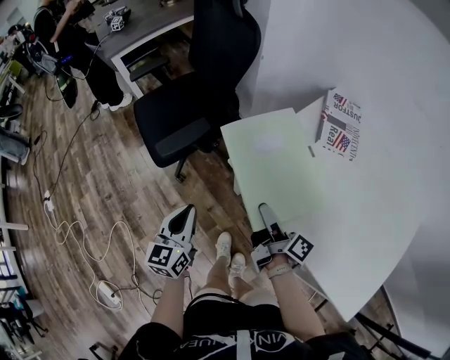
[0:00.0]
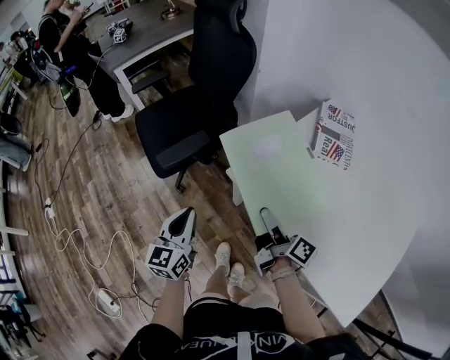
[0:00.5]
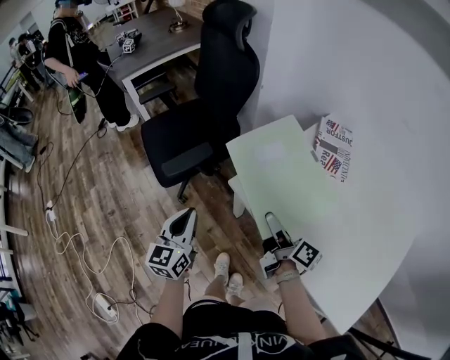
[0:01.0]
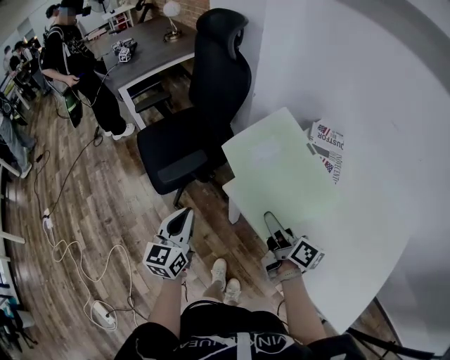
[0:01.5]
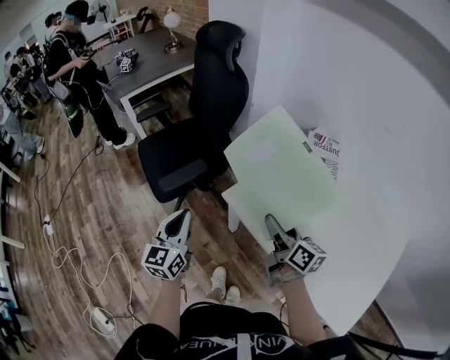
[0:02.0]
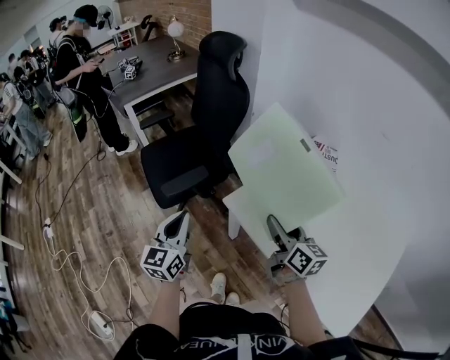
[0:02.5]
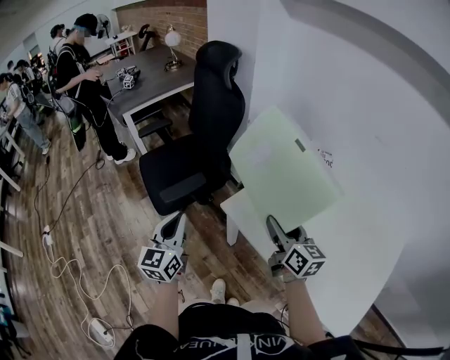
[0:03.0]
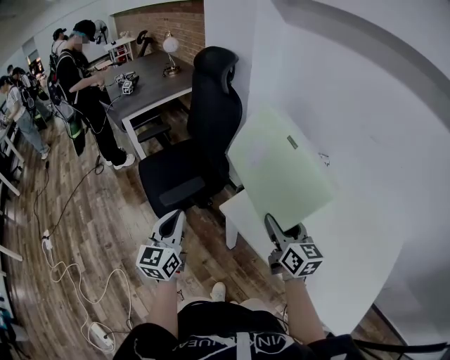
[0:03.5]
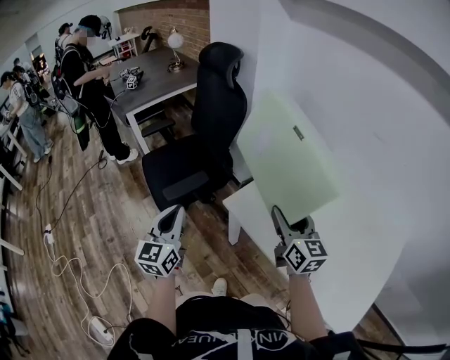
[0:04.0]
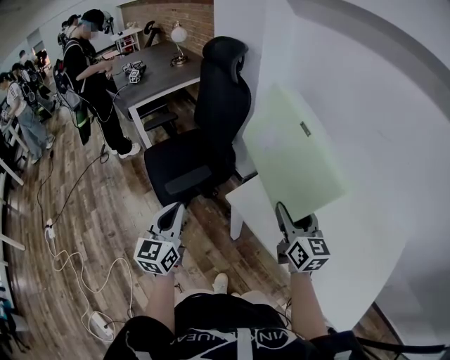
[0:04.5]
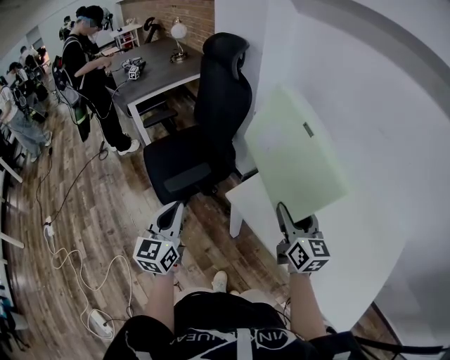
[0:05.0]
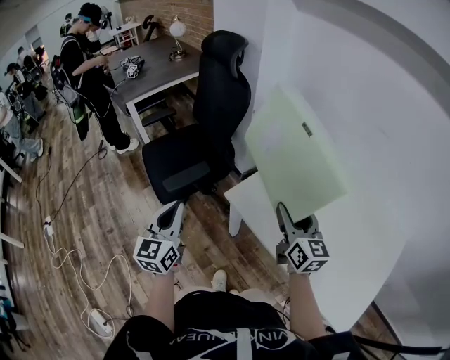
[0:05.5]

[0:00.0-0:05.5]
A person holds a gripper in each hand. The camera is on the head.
0.0 to 2.0 s: Both grippers move upward, approximately 10 cm. The right gripper turns by some 30 degrees.
2.0 to 3.5 s: Both grippers move upward, some 5 cm. The right gripper rotates some 20 degrees.
3.5 to 5.5 s: There are only small adjustments of the grippers.

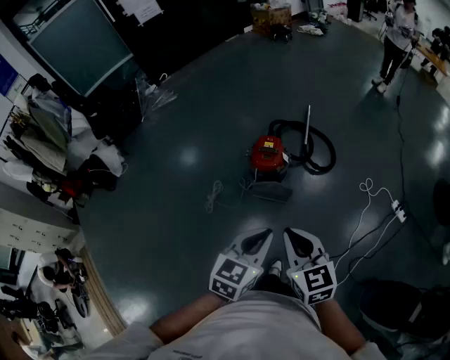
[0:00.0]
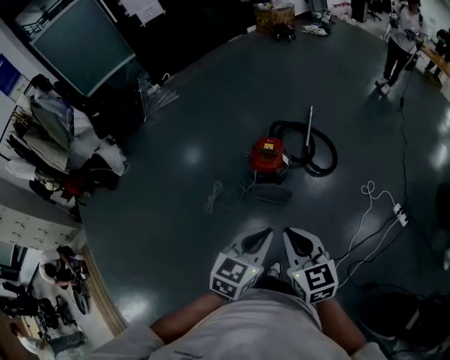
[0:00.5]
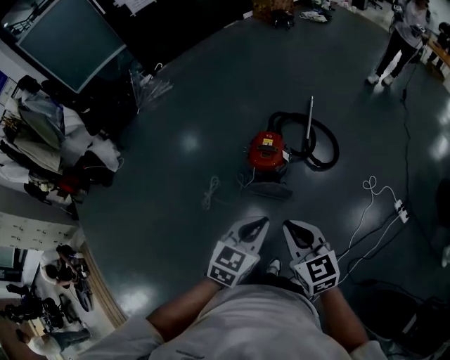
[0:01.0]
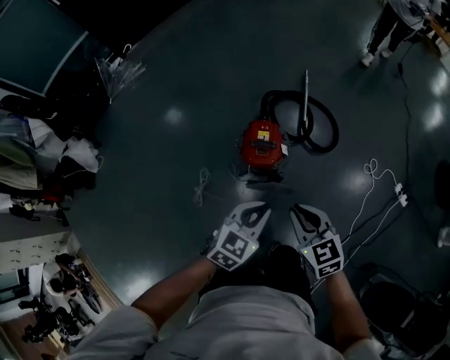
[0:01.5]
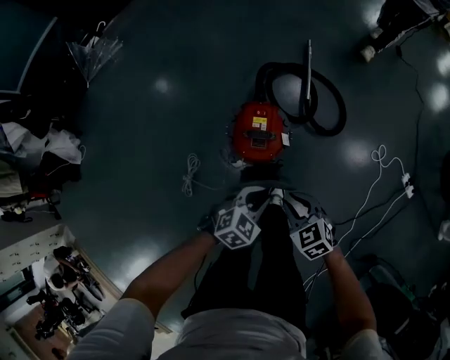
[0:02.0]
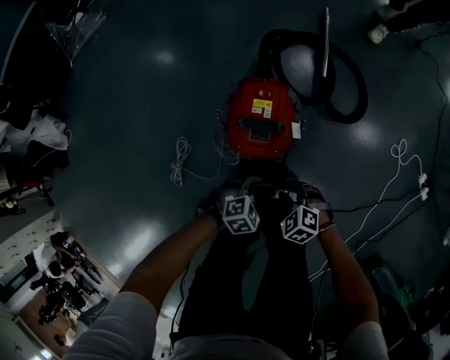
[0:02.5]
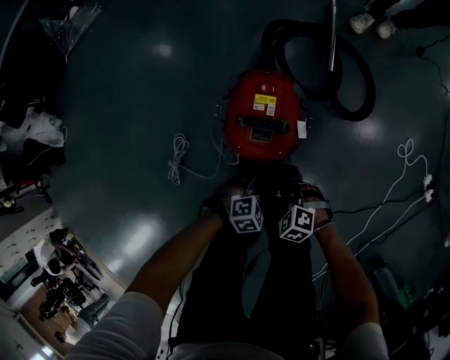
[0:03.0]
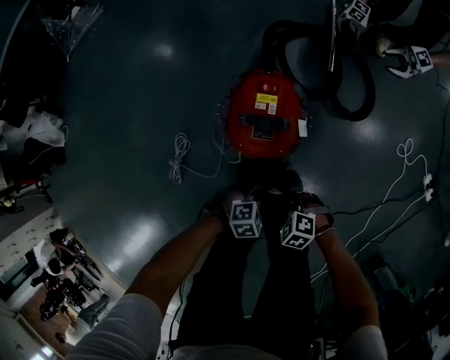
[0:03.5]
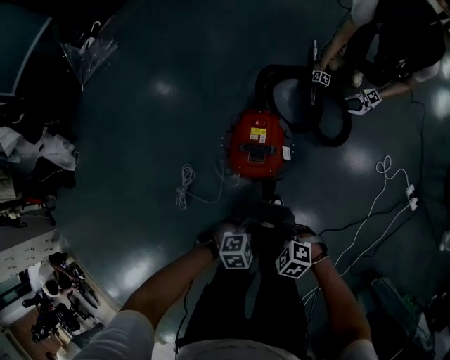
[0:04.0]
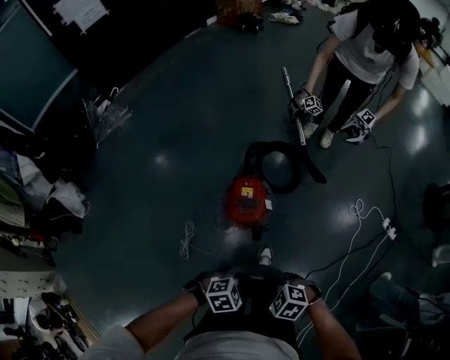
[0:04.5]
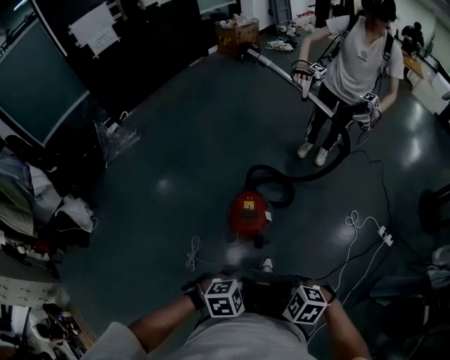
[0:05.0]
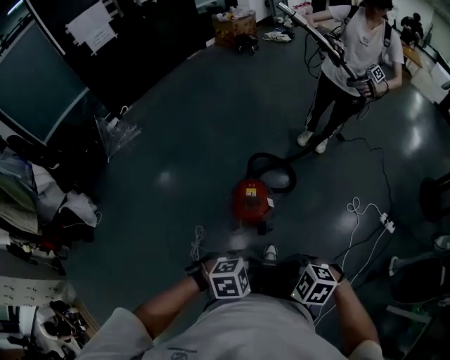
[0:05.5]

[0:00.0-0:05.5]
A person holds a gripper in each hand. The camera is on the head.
0.0 to 2.0 s: Both grippers travel together downward and forward, some 50 cm. The right gripper turns by roughly 30 degrees, while the left gripper changes its angle by about 40 degrees.
2.0 to 3.5 s: Both grippers travel together downward, roughly 30 cm. The left gripper rotates approximately 30 degrees. The right gripper rotates about 40 degrees.
3.5 to 5.5 s: The grippers both shift upward by approximately 60 cm.

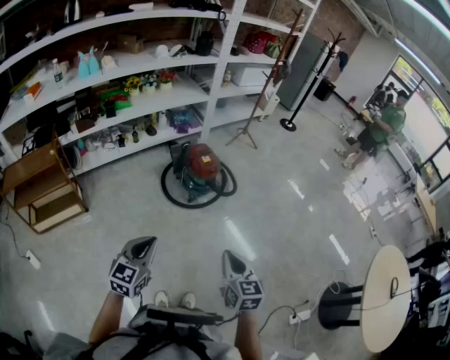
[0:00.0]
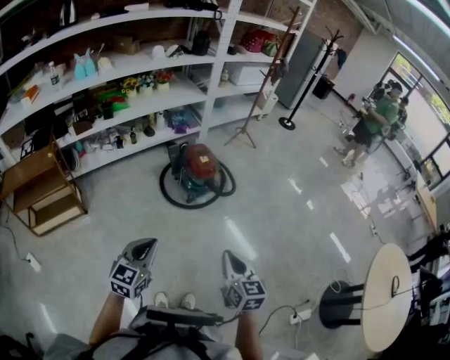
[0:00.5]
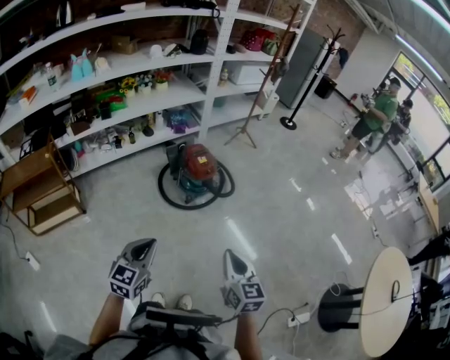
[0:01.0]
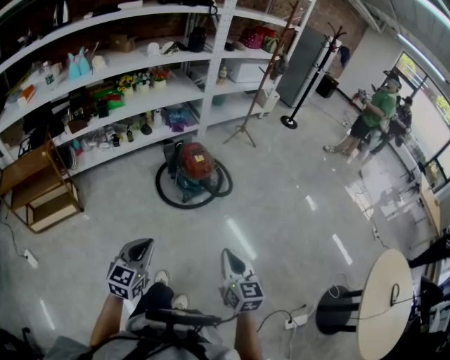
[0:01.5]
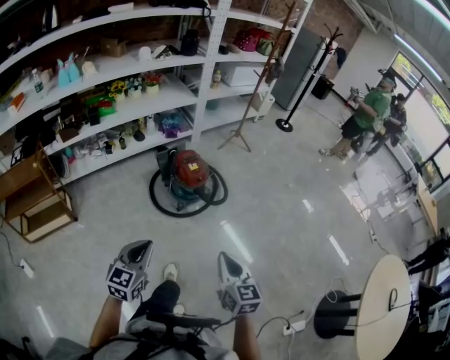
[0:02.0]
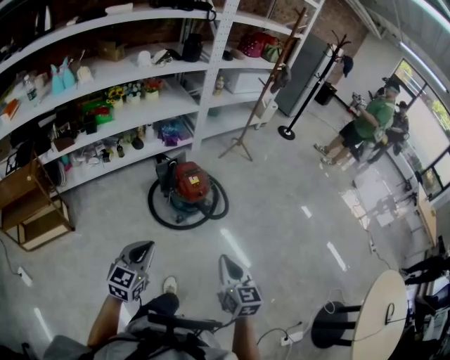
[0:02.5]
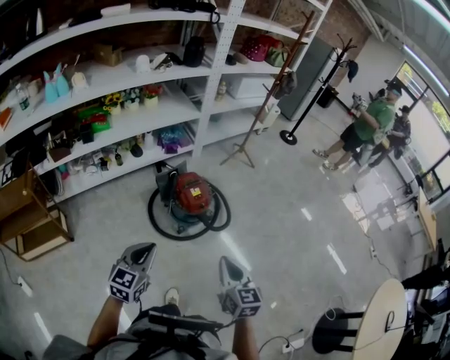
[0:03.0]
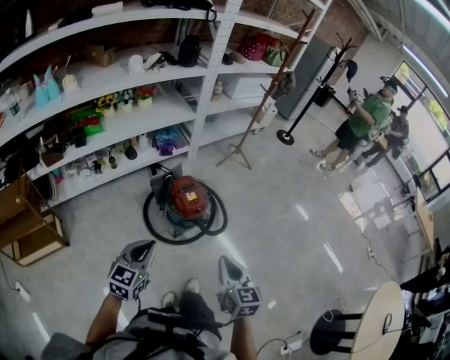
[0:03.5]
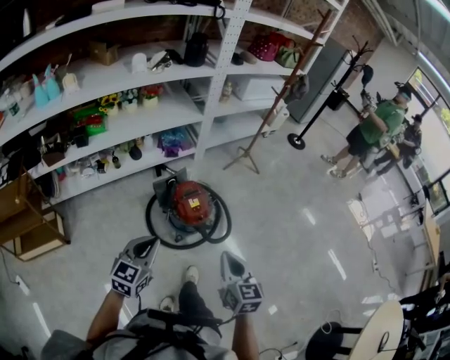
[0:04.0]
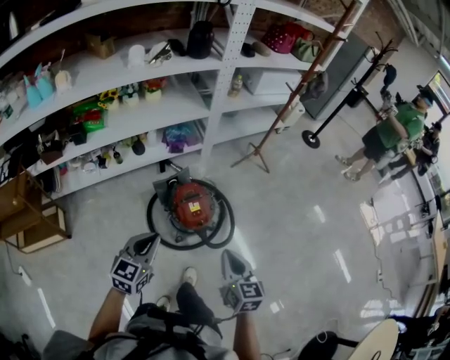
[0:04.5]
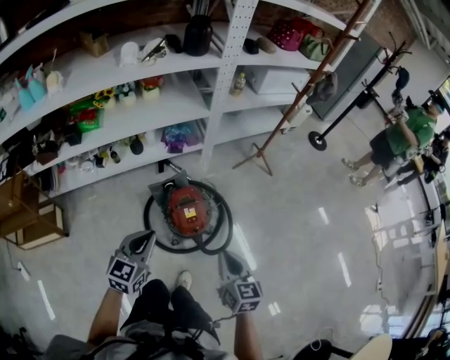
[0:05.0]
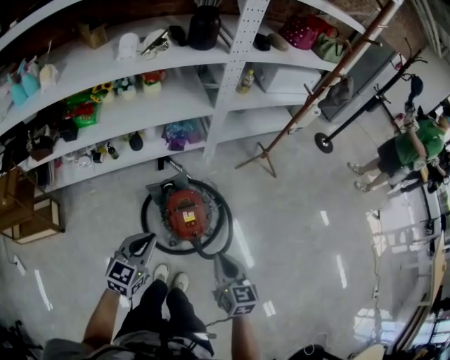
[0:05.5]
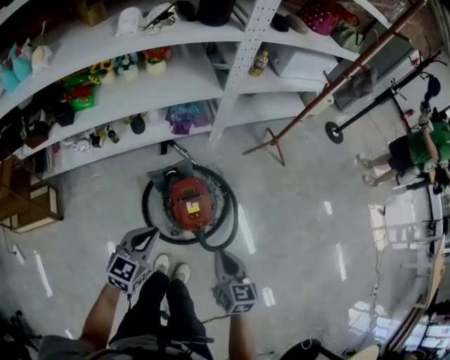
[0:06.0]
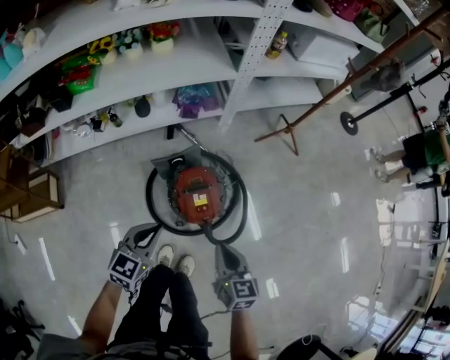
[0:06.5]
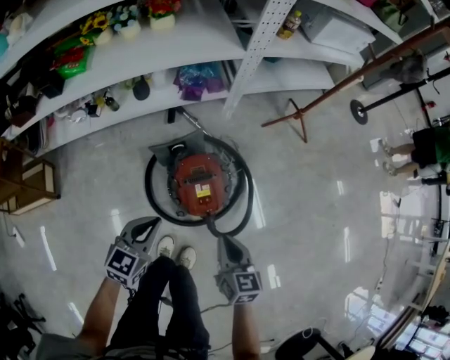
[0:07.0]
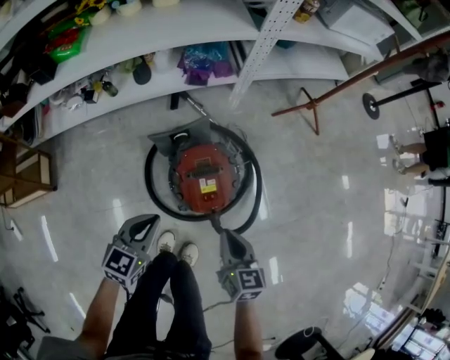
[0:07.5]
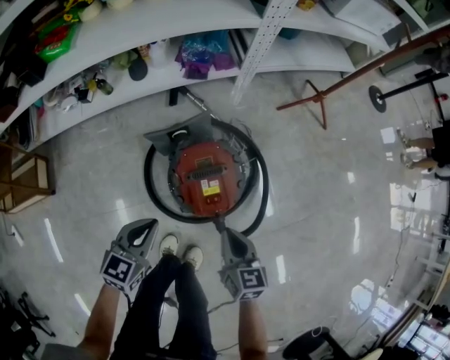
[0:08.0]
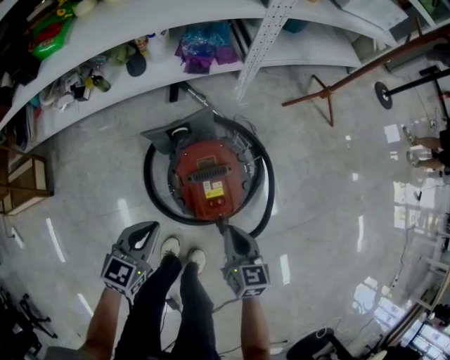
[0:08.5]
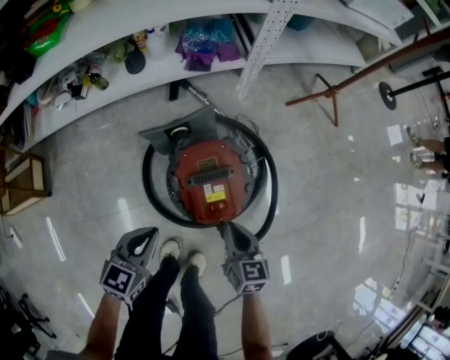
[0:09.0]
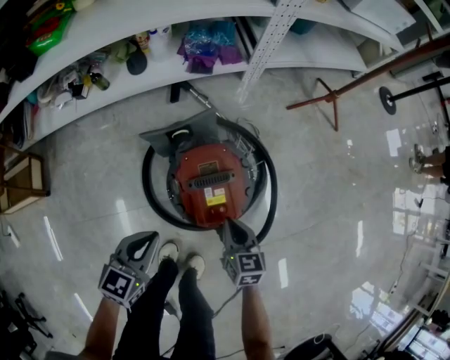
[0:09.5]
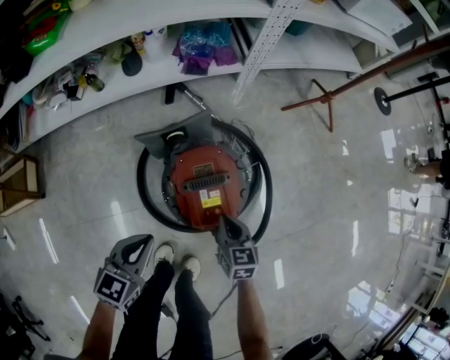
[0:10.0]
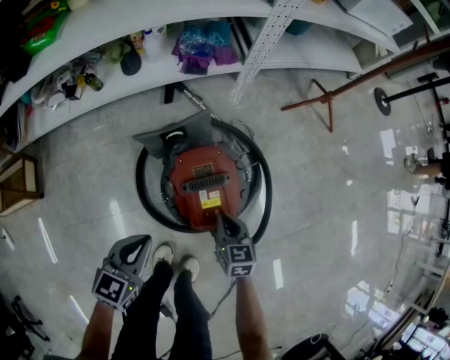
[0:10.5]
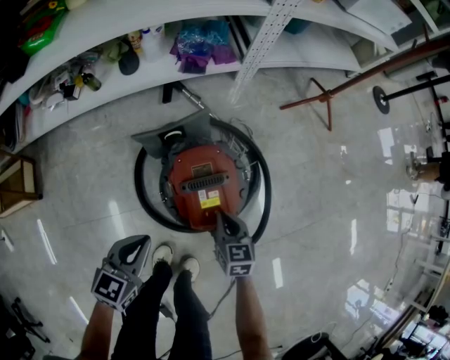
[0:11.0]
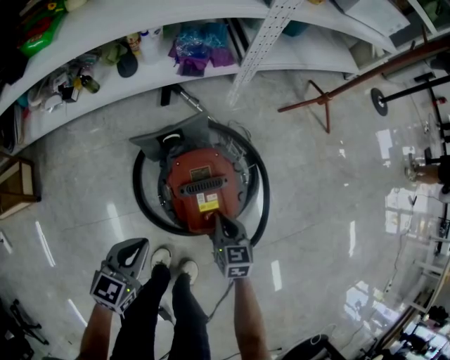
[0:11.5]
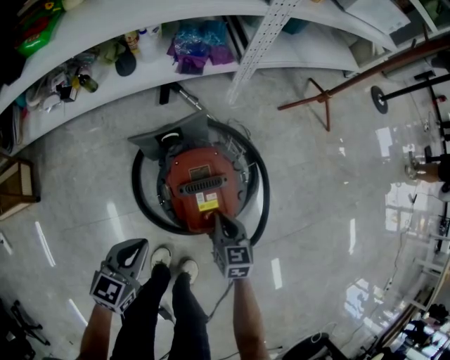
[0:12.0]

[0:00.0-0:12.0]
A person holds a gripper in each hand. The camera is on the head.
0.0 to 2.0 s: Both grippers travel together forward and to the right, some 10 cm.
2.0 to 4.0 s: The two grippers go about 35 cm forward.
4.0 to 6.0 s: The two grippers go approximately 30 cm forward and downward.
6.0 to 8.0 s: The grippers both shift downward by roughly 25 cm.
8.0 to 10.0 s: The right gripper moves downward and forward, about 15 cm, while the left gripper heads downward, covering approximately 5 cm.
10.0 to 12.0 s: The grippers stay close to where they were, moving slightly.

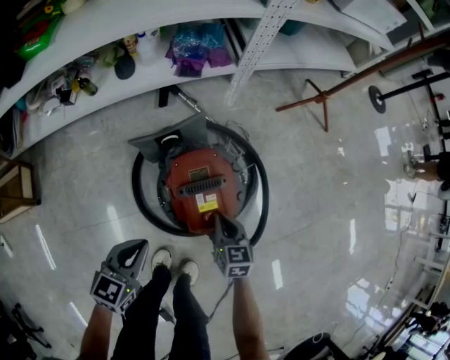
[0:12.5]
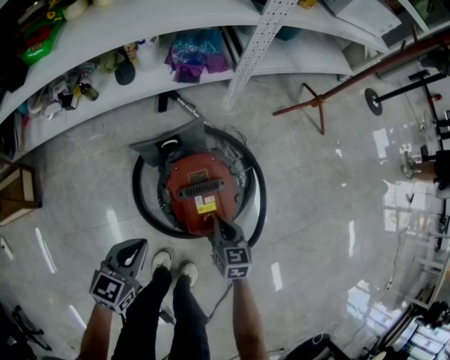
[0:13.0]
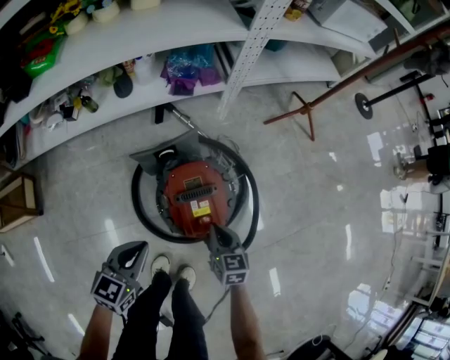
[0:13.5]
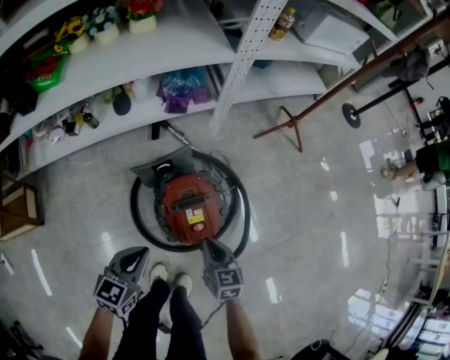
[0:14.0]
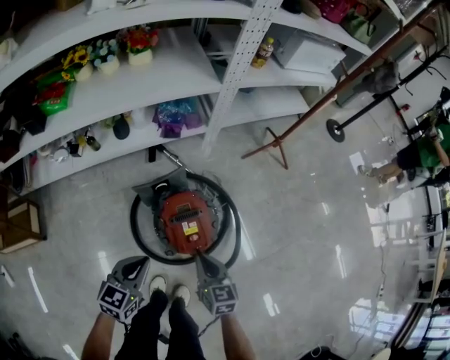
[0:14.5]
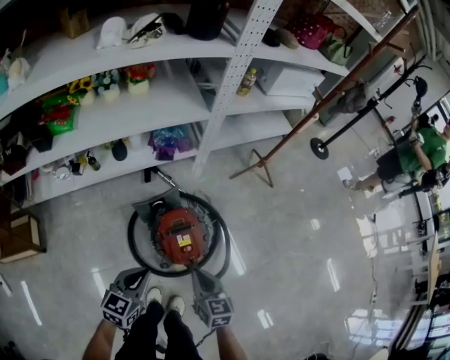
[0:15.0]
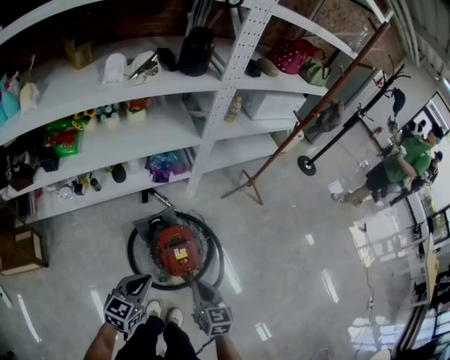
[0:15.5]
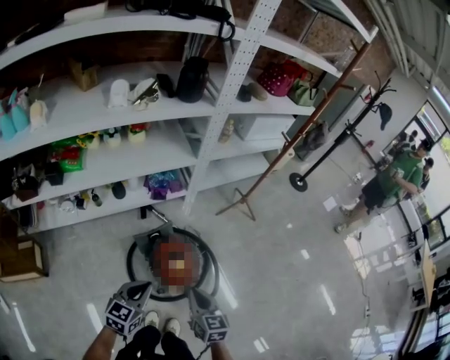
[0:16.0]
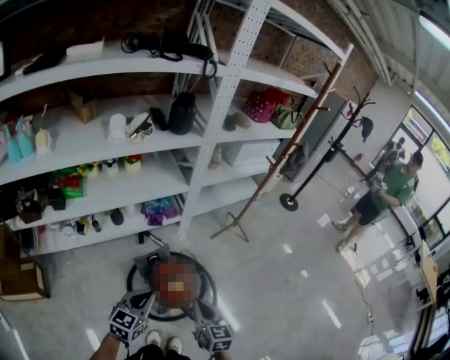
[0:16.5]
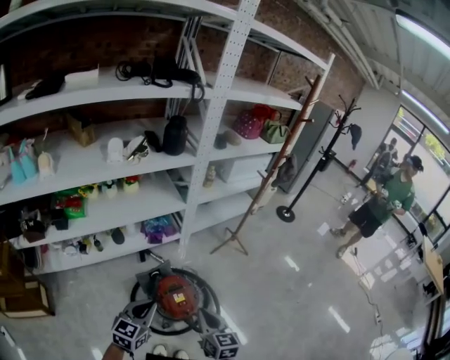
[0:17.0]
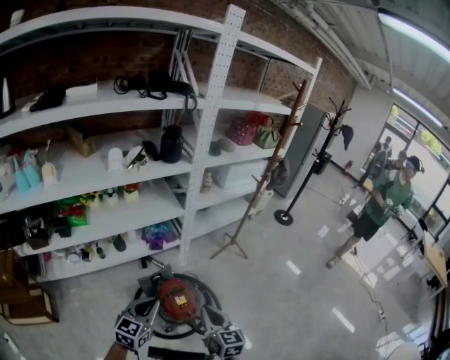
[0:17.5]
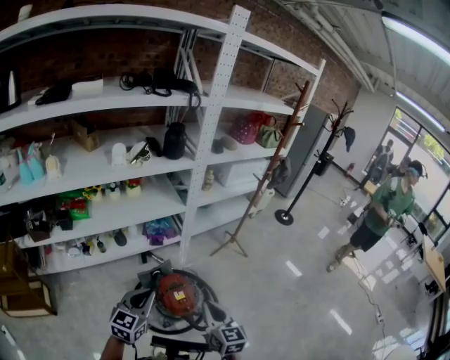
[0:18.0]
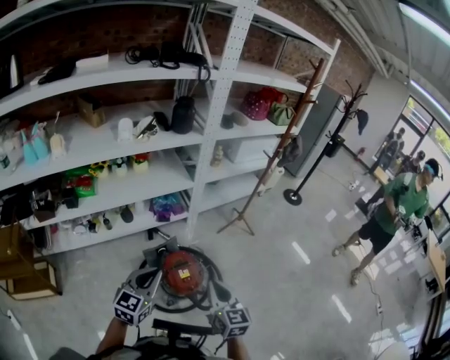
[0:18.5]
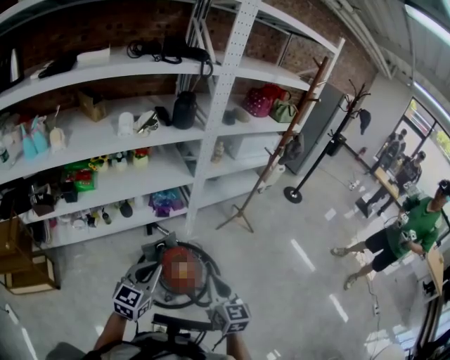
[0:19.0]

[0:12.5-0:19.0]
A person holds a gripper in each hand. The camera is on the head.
12.5 to 14.5 s: The two grippers go approximately 20 cm upward.
14.5 to 17.0 s: The grippers both shift upward by roughly 30 cm.
17.0 to 19.0 s: Both grippers move upward, about 5 cm.
